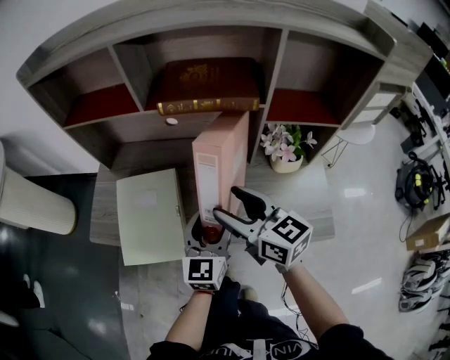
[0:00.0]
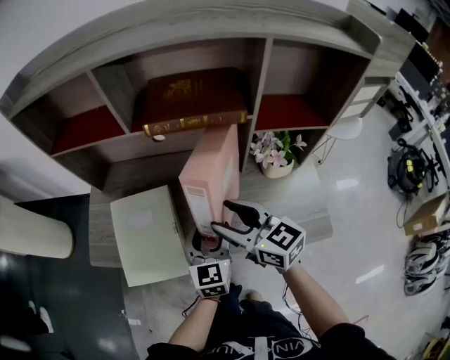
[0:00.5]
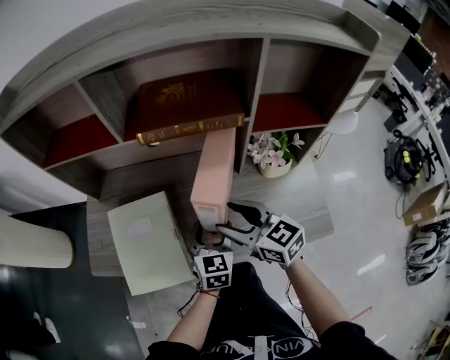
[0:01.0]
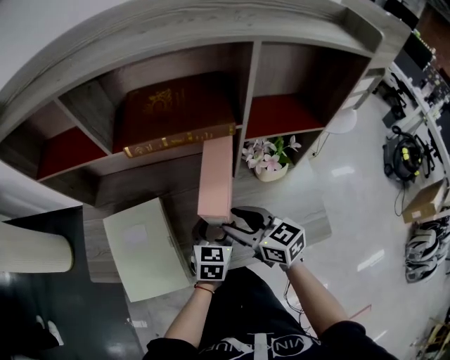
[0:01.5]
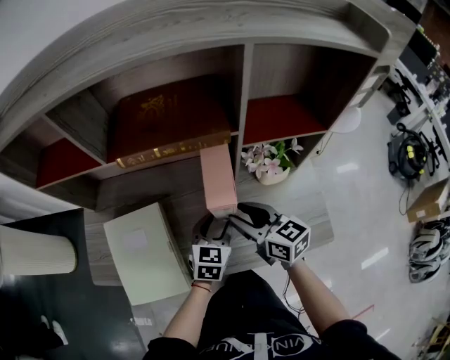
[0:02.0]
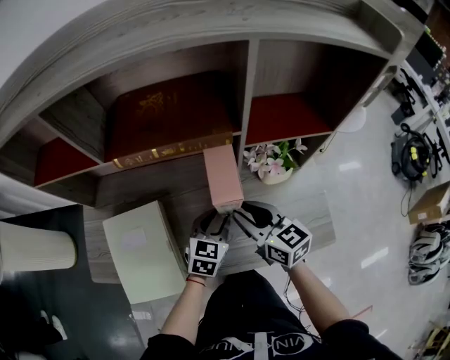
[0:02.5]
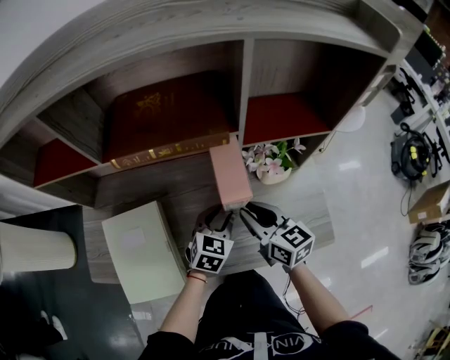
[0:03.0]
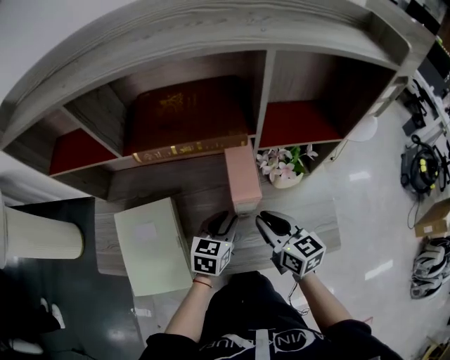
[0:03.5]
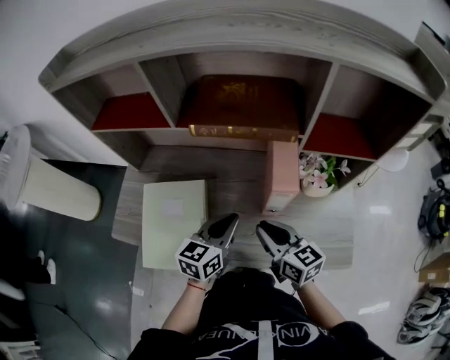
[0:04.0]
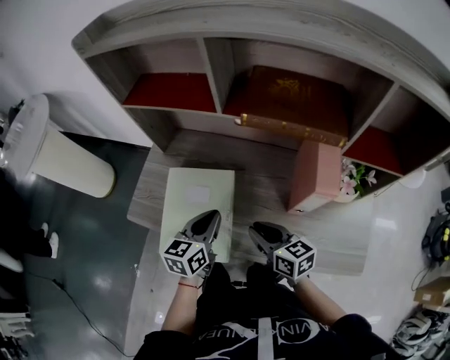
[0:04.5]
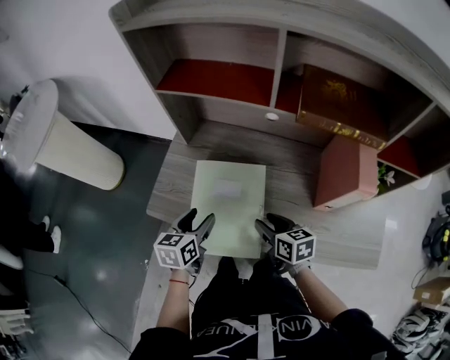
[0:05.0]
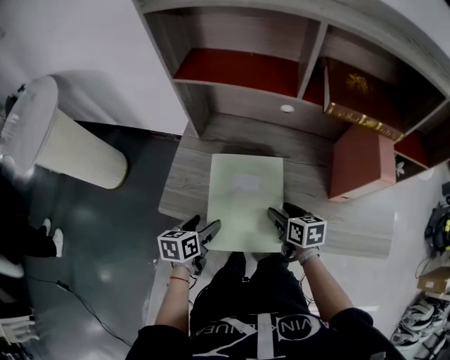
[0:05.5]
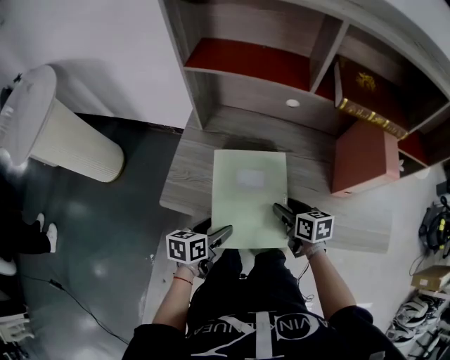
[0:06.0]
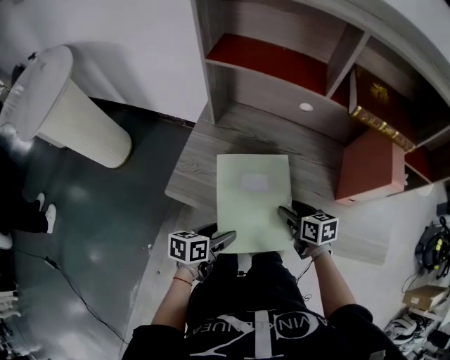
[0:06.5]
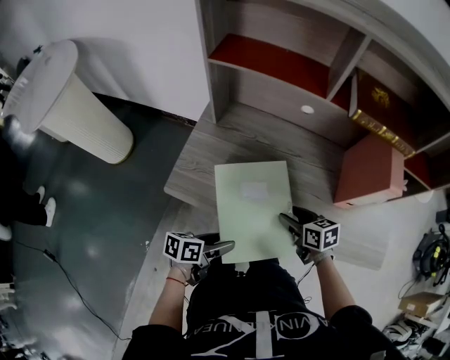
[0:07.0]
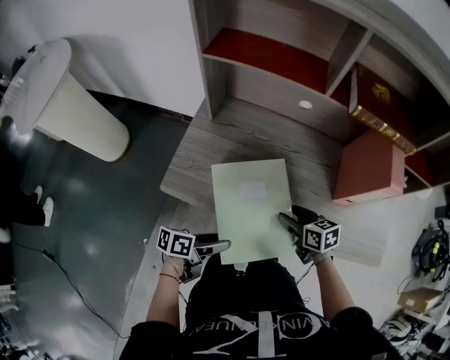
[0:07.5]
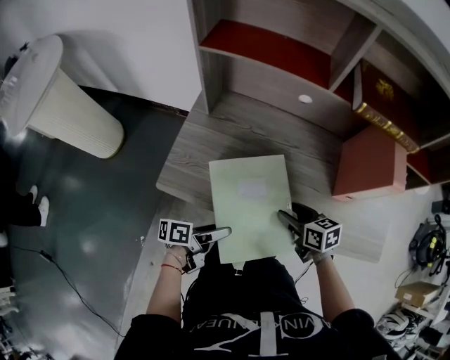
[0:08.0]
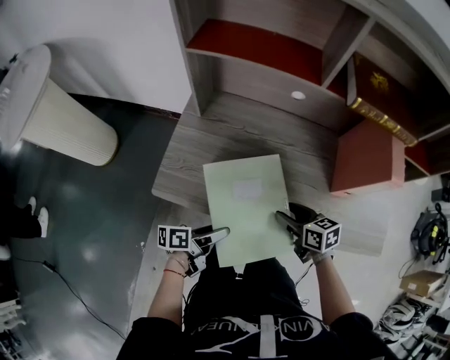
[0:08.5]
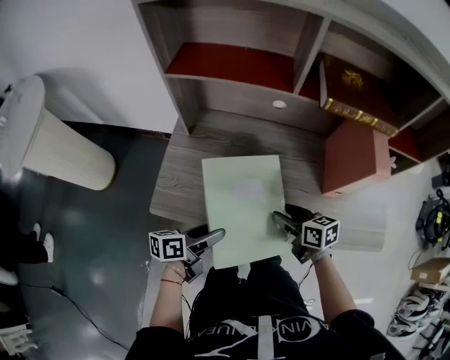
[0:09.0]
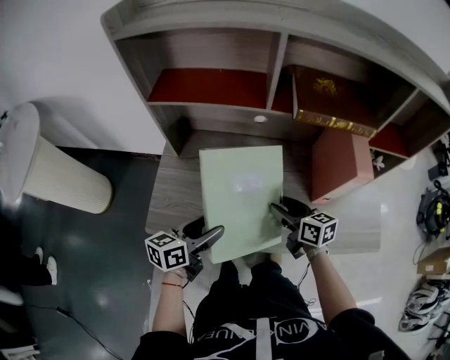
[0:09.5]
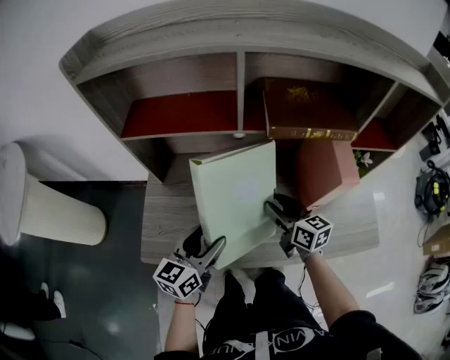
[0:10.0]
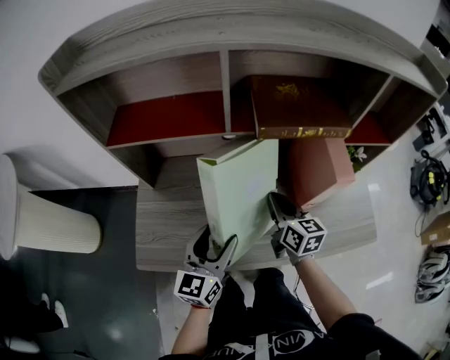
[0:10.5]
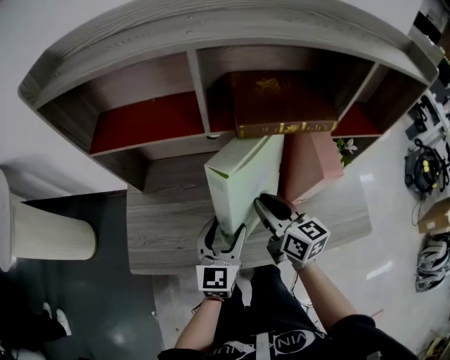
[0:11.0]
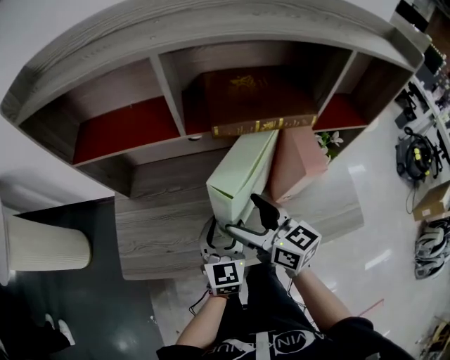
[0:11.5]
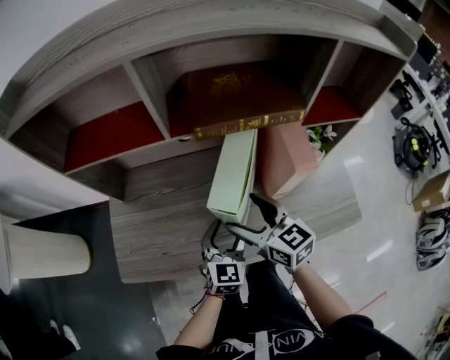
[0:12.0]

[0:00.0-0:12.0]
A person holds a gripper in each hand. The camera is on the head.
0:00.0 to 0:02.0: The two grippers go roughly 15 cm downward, to the right and forward. The left gripper turns by some 30 degrees.
0:02.0 to 0:04.0: The left gripper travels upward and to the left by approximately 10 cm, swivels about 20 degrees, and closes. Meanwhile the right gripper moves about 5 cm.
0:04.0 to 0:06.0: The left gripper moves to the left, some 35 cm, rotates some 30 degrees, and opens; the right gripper heads to the left and downward, covering approximately 25 cm, swivels about 30 degrees, and opens its fingers.
0:06.0 to 0:08.0: The left gripper changes place by roughly 5 cm, and changes its angle by roughly 40 degrees.
0:08.0 to 0:10.0: The left gripper is displaced upward and forward by approximately 20 cm, and rotates around the line of its fingers by approximately 60 degrees, clockwise from behind; the right gripper goes roughly 15 cm forward, upward and to the right, and turns by about 30 degrees.
0:10.0 to 0:12.0: The left gripper is displaced to the right by roughly 15 cm, and rotates roughly 30 degrees, while the right gripper is displaced upward by roughly 5 cm, and opens its fingers.

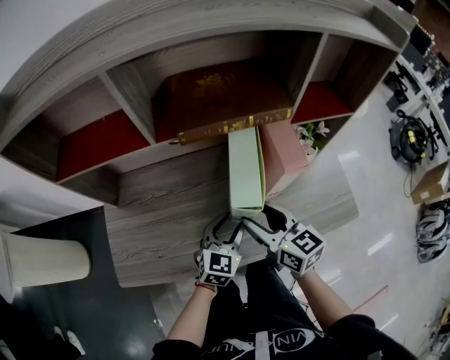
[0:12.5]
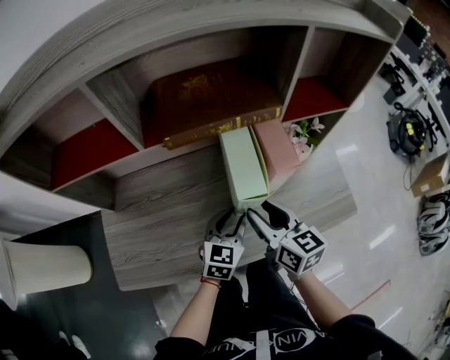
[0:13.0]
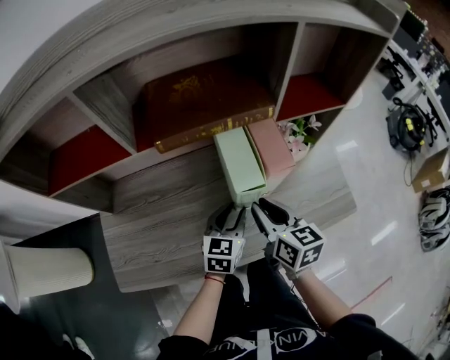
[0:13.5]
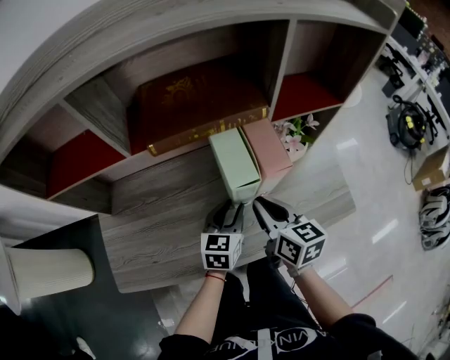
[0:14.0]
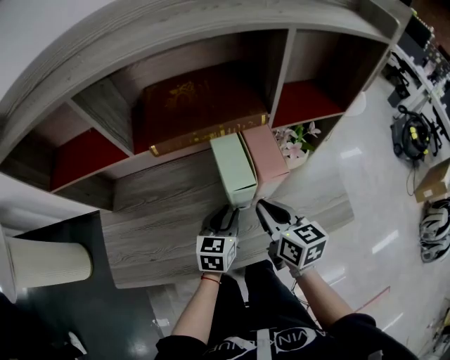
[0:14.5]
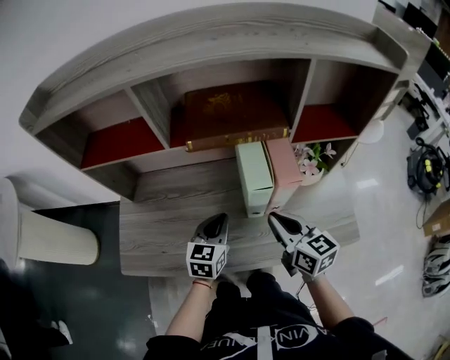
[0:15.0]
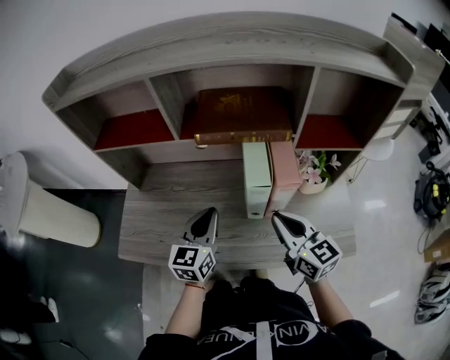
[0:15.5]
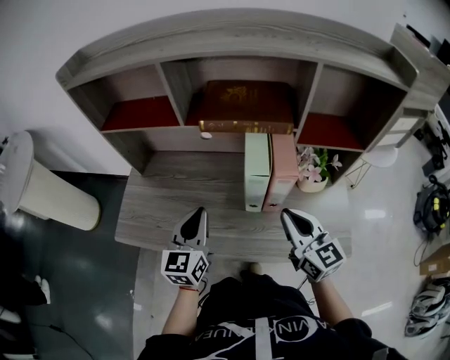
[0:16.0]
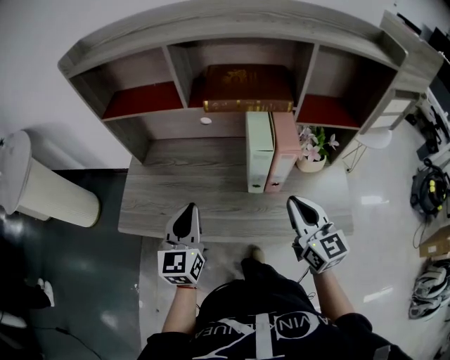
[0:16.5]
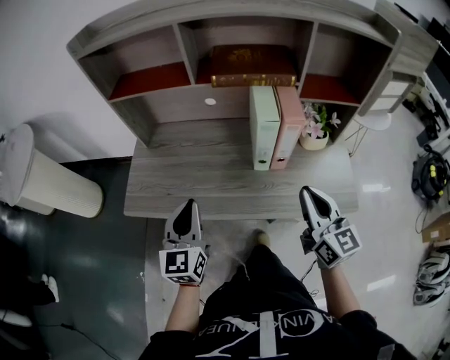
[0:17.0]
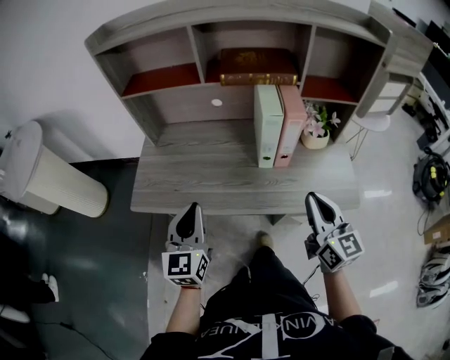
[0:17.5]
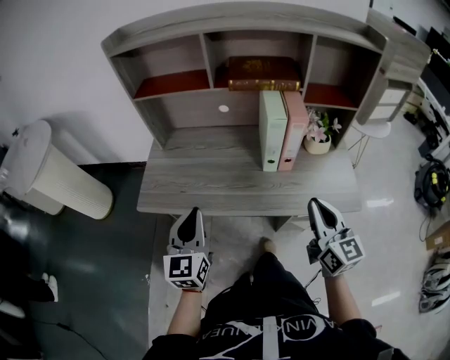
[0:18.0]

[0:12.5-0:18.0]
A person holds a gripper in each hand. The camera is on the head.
0:12.5 to 0:14.5: The left gripper shifts by about 5 cm; the right gripper heads to the right, covering approximately 5 cm, and closes up.
0:14.5 to 0:16.0: The left gripper is displaced upward, to the left and backward by roughly 20 cm, and changes its angle by roughly 30 degrees. The right gripper moves upward and backward, about 10 cm, and changes its angle by some 30 degrees.
0:16.0 to 0:18.0: The left gripper moves backward and to the left, about 20 cm, while the right gripper is displaced backward by approximately 15 cm.

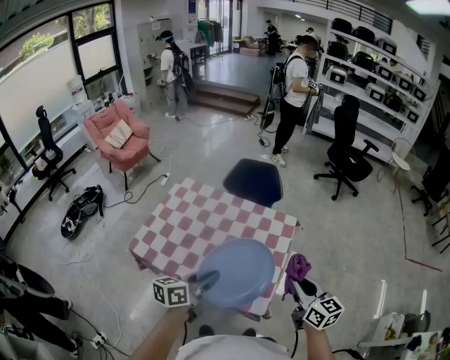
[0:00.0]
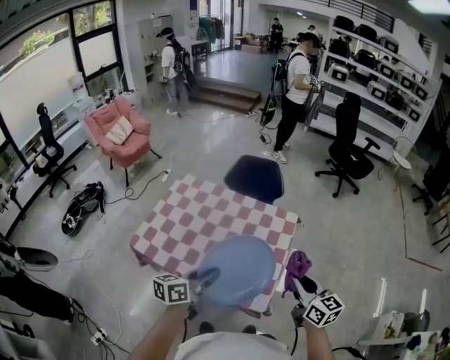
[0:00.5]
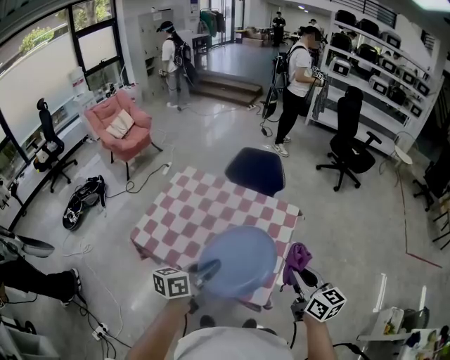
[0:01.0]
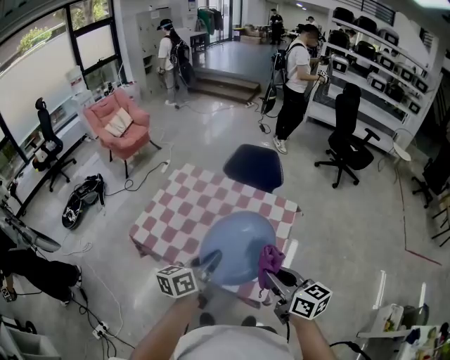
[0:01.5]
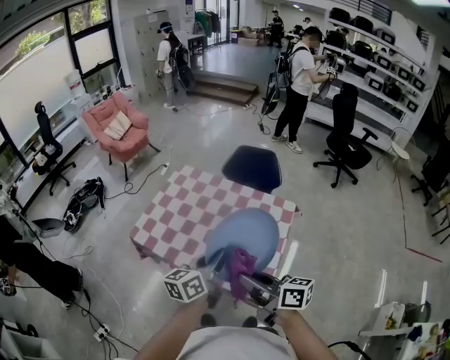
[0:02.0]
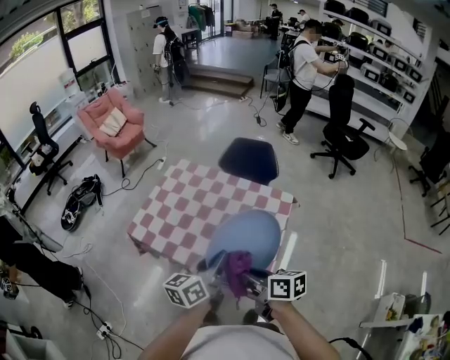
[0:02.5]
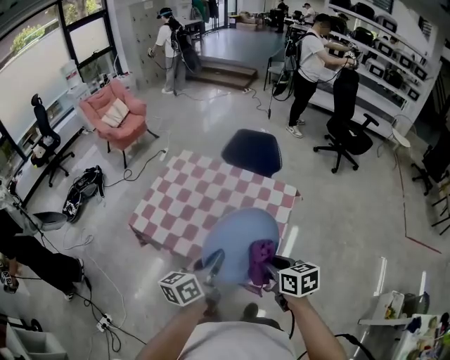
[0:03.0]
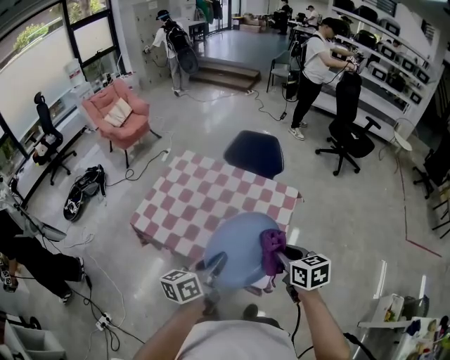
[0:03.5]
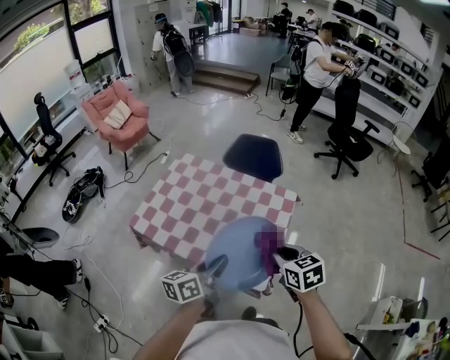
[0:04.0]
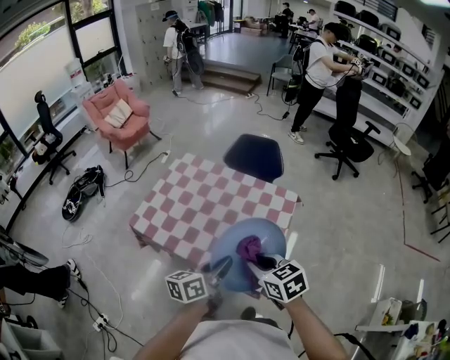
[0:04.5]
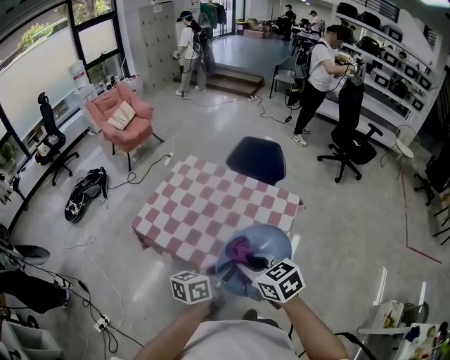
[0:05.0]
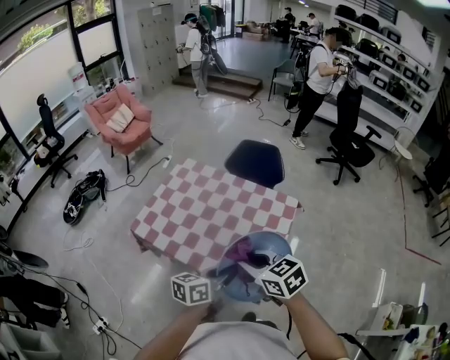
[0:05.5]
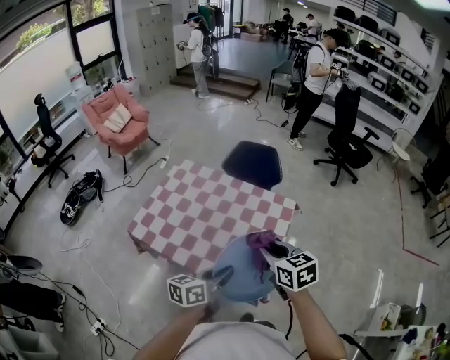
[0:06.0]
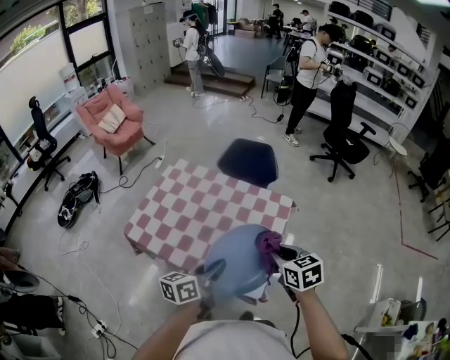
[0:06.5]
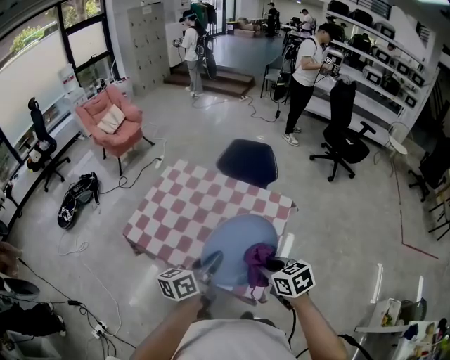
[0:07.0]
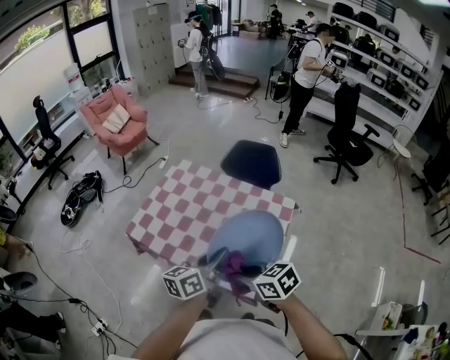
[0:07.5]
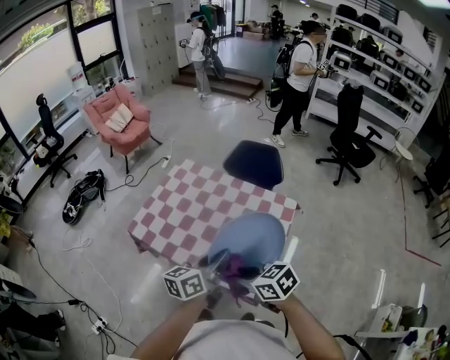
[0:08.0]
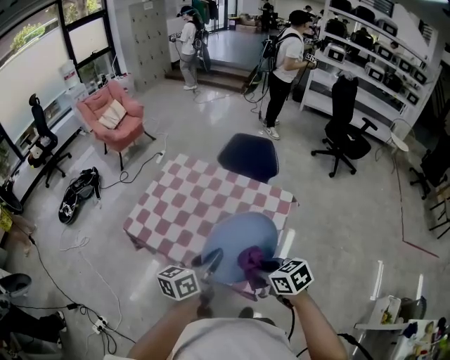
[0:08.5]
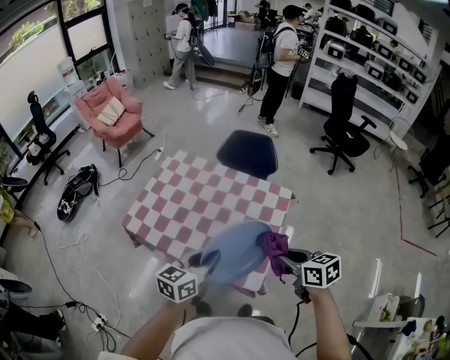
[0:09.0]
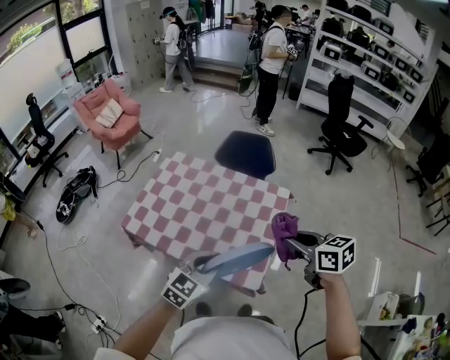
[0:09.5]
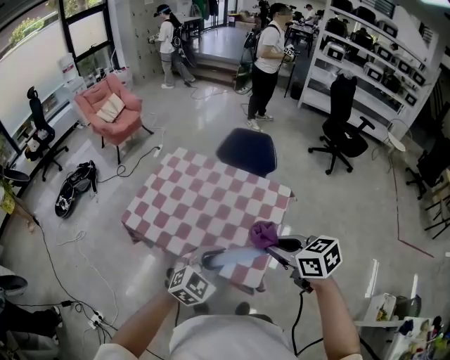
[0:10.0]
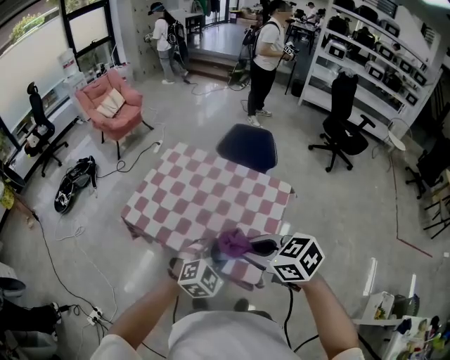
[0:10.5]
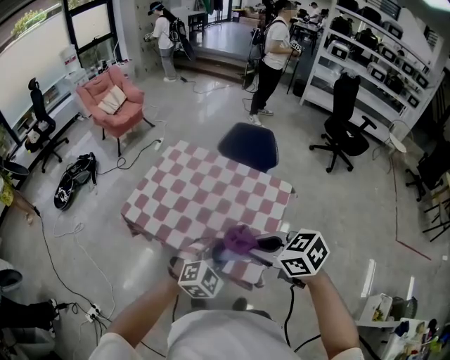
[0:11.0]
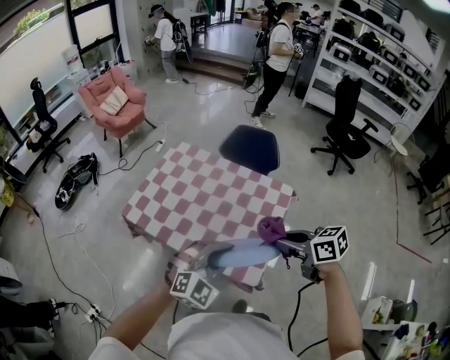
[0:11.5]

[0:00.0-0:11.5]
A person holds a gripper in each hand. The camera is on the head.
0:00.0 to 0:02.0: The right gripper heads to the left, covering about 15 cm, and turns by approximately 40 degrees.
0:02.0 to 0:04.0: The left gripper ends up roughly 5 cm from where it was, while the right gripper heads to the right, covering approximately 10 cm, and points its fingers approximately 30 degrees further downward.
0:04.0 to 0:06.0: The right gripper moves some 10 cm to the left and comes back.
0:06.0 to 0:07.5: The left gripper travels forward by roughly 5 cm; the right gripper travels to the left and backward by about 10 cm, and rotates about 30 degrees.
0:07.5 to 0:09.5: The right gripper moves to the right and upward, about 20 cm, and turns by roughly 20 degrees; the left gripper moves backward, some 5 cm, and twists roughly 50 degrees clockwise, seen from behind.
0:09.5 to 0:11.5: The right gripper moves some 15 cm to the left and comes back. The left gripper rotates roughly 30 degrees.
